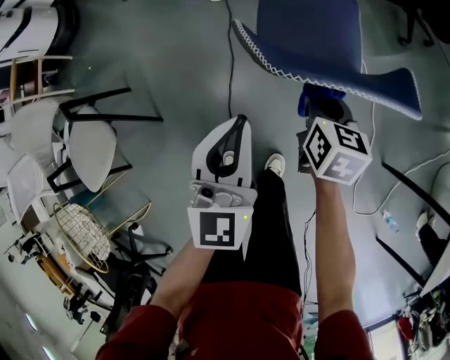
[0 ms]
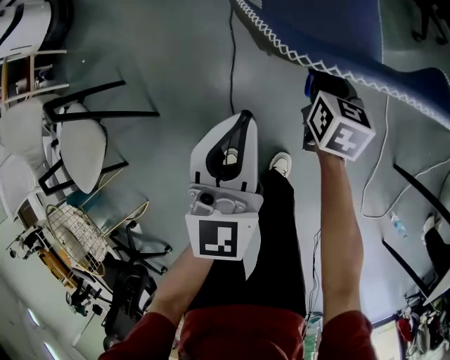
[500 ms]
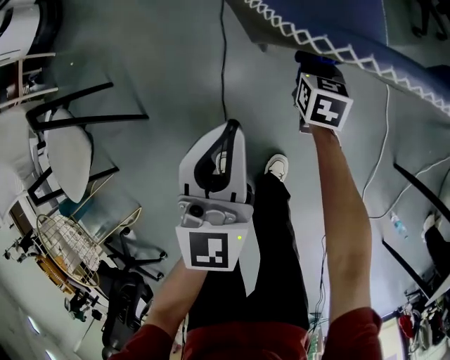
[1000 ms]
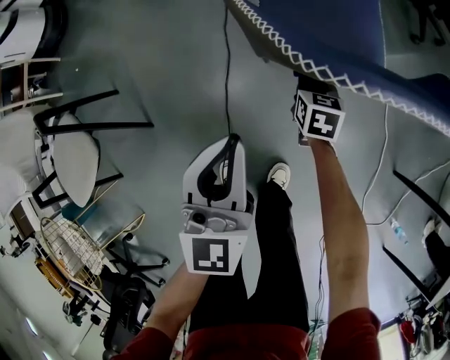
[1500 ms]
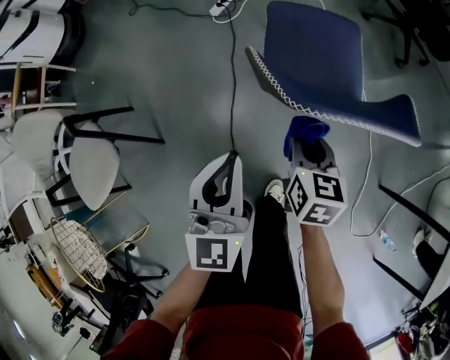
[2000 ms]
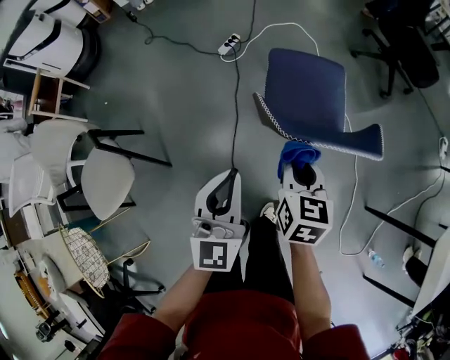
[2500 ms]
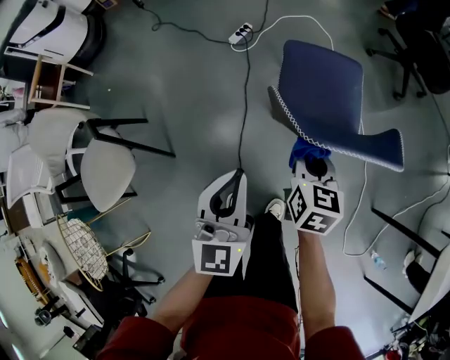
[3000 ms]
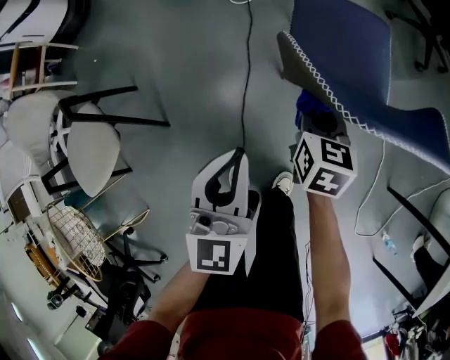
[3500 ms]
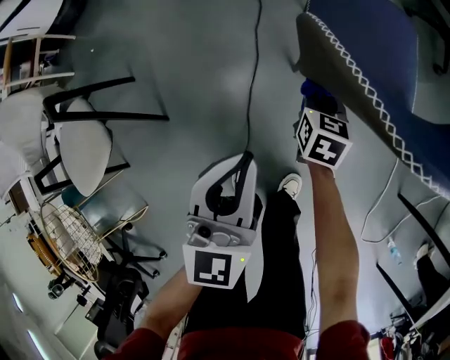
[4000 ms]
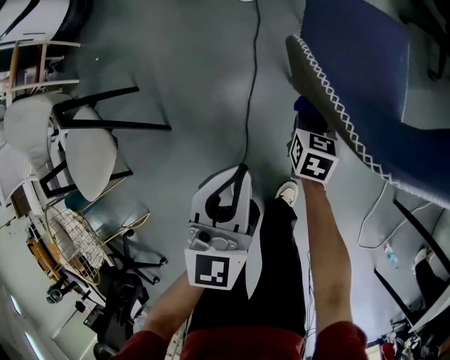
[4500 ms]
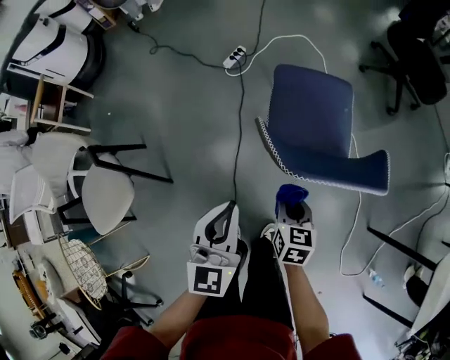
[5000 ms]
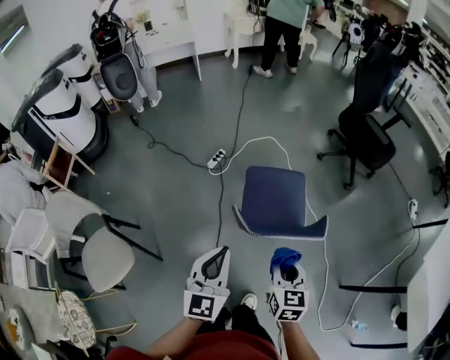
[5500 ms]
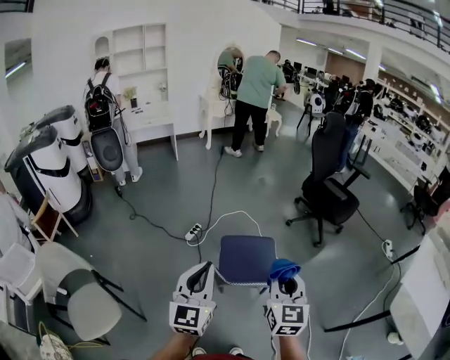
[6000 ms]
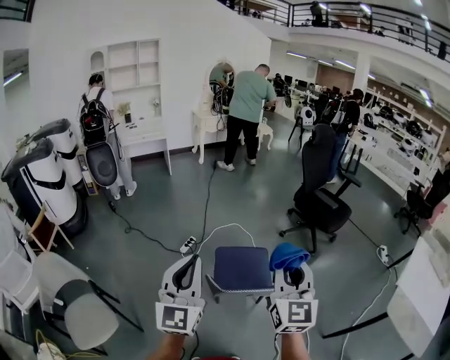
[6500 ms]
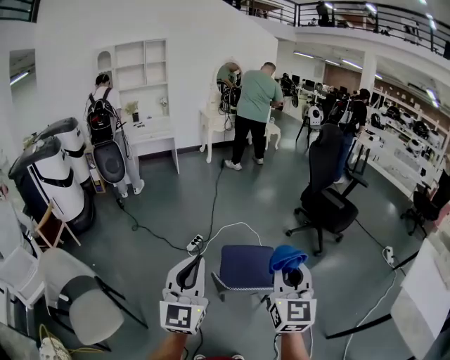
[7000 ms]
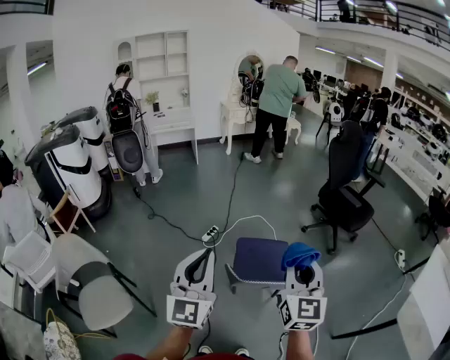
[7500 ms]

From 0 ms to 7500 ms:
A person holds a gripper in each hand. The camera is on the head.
From 0 ms to 2000 ms: The left gripper travels downward and back again, some 10 cm each way; the right gripper goes approximately 5 cm to the left, and goes downward and returns, about 25 cm each way.
From 2000 ms to 4000 ms: The right gripper goes about 20 cm downward and forward; the left gripper travels downward by about 10 cm.
From 4000 ms to 5500 ms: The left gripper travels upward by some 30 cm. The right gripper shifts some 40 cm upward.
From 5500 ms to 7500 ms: The grippers both shift upward by about 25 cm. The left gripper swivels roughly 20 degrees, while the right gripper tilts its fingers roughly 30 degrees upward.

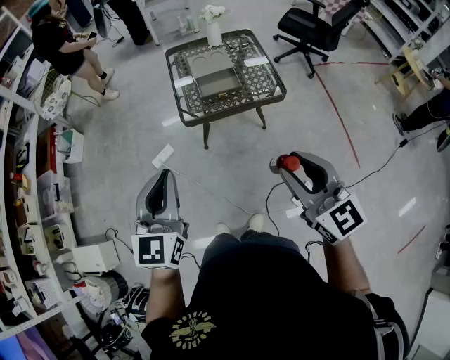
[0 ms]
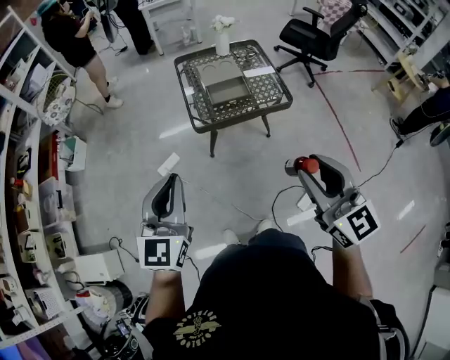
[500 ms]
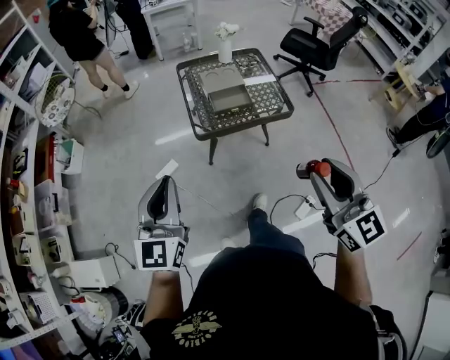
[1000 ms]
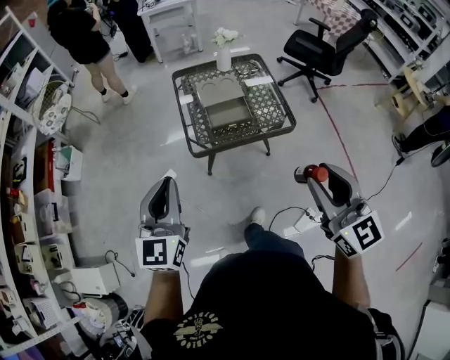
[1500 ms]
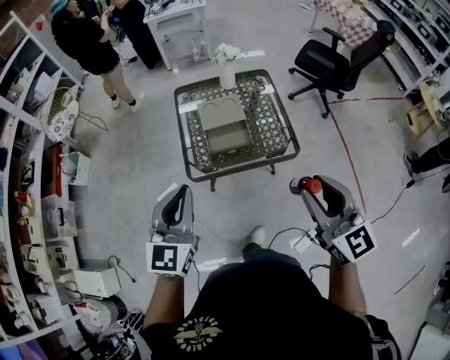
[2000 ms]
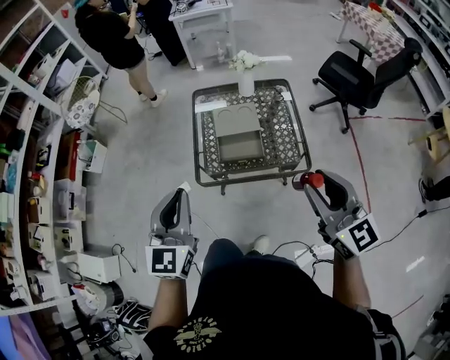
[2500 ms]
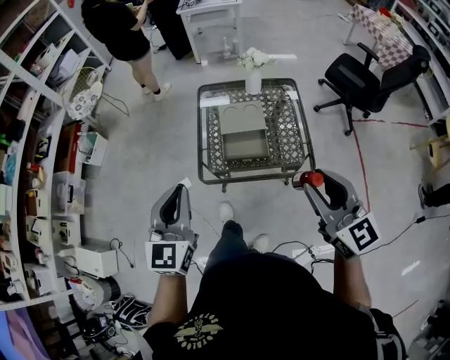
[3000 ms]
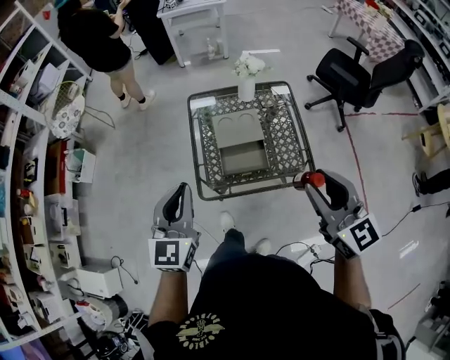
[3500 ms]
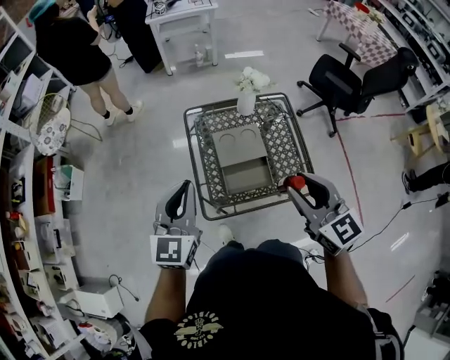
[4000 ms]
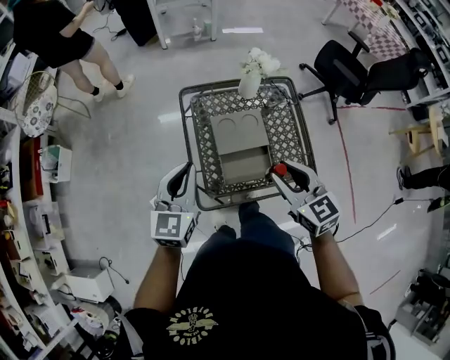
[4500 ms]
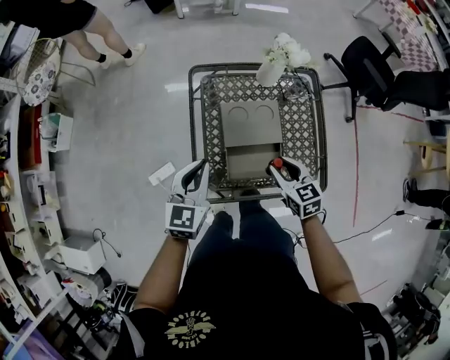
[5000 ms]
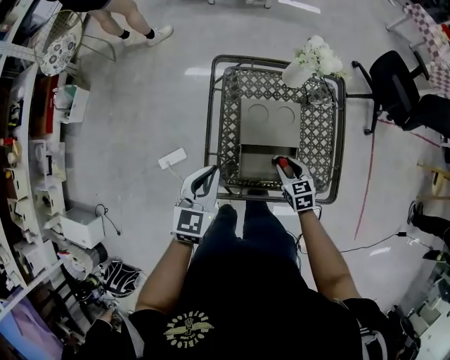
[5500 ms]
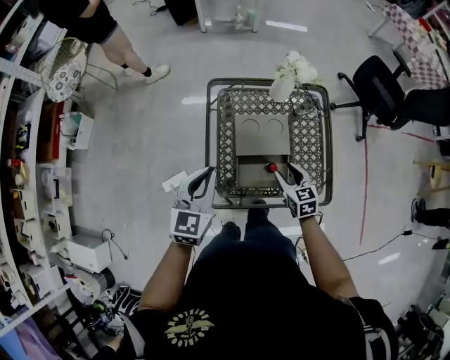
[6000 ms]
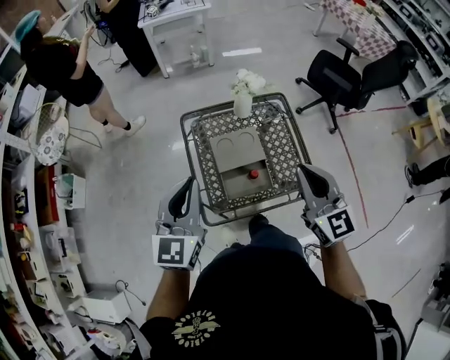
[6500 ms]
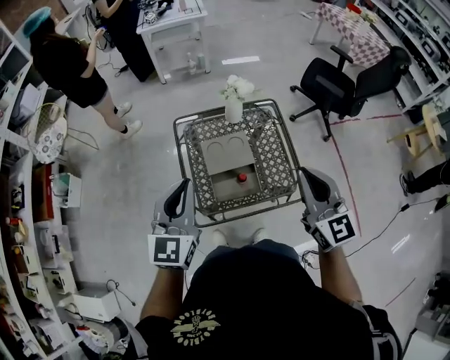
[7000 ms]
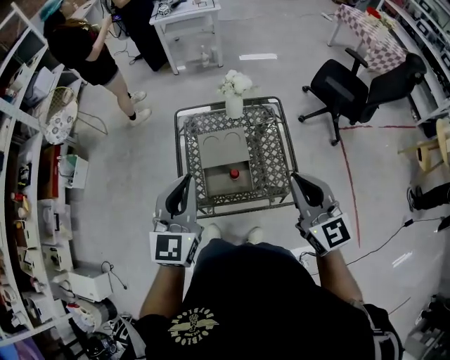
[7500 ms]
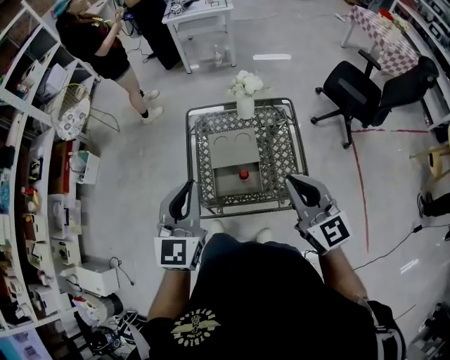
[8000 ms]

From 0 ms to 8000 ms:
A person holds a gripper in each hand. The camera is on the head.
From 0 ms to 2000 ms: The left gripper goes roughly 20 cm forward. Meanwhile the right gripper shifts about 25 cm forward and to the right.
From 2000 ms to 4000 ms: Both grippers move forward, about 25 cm.
From 4000 ms to 6000 ms: The right gripper moves downward, approximately 35 cm, and swivels about 30 degrees. Meanwhile the left gripper shifts about 15 cm downward and forward.
From 6000 ms to 8000 ms: The right gripper heads upward, covering some 35 cm, tilts its fingers about 30 degrees upward, and closes its fingers. The left gripper moves upward, to the right and backward, about 25 cm.

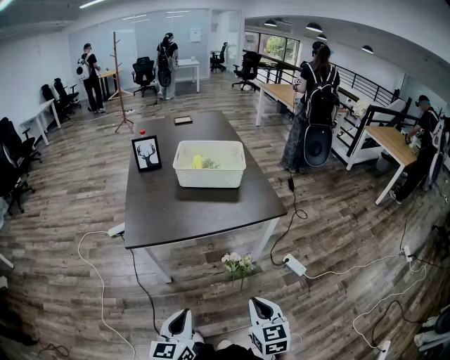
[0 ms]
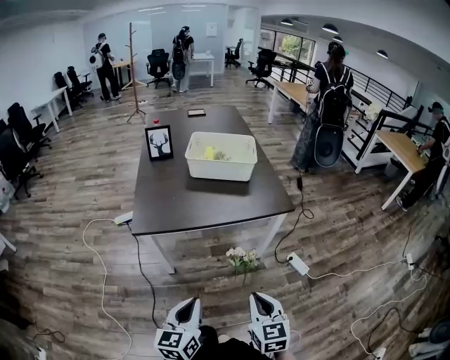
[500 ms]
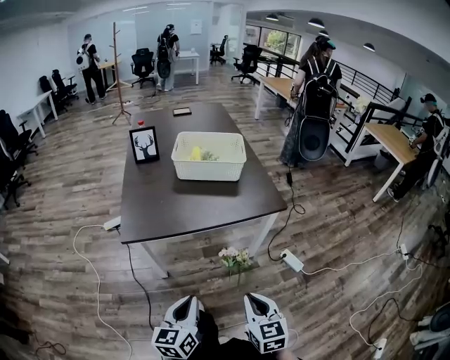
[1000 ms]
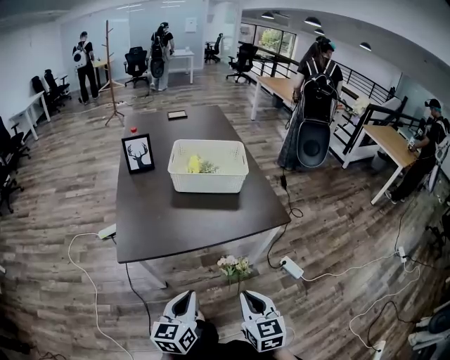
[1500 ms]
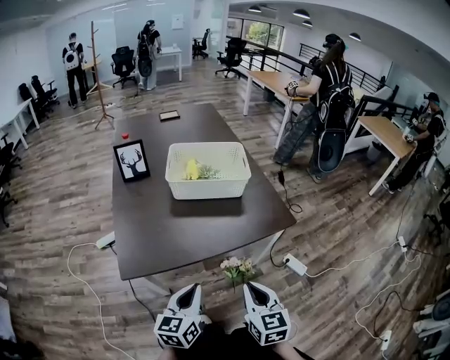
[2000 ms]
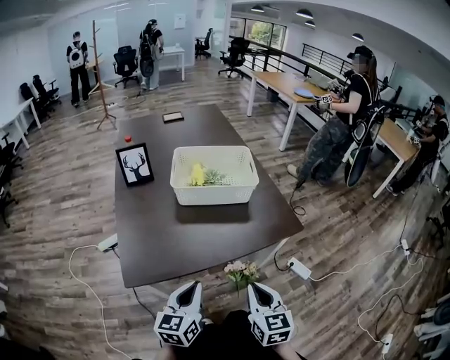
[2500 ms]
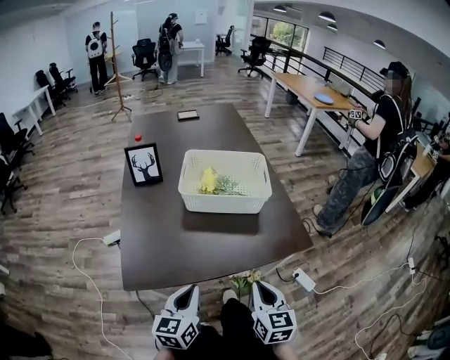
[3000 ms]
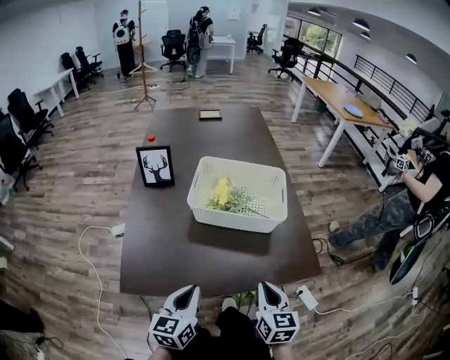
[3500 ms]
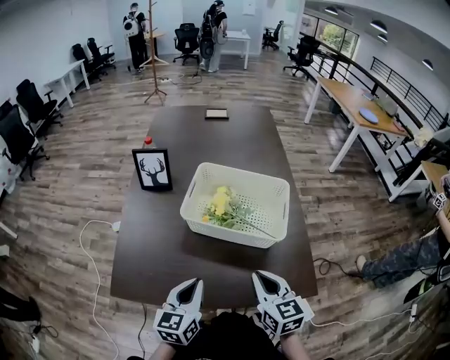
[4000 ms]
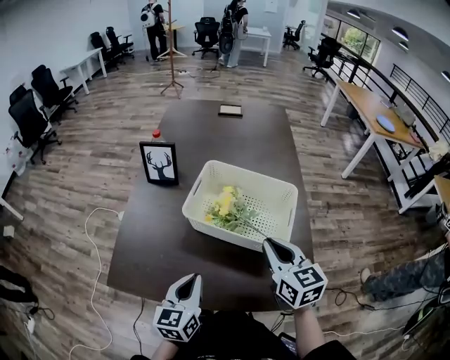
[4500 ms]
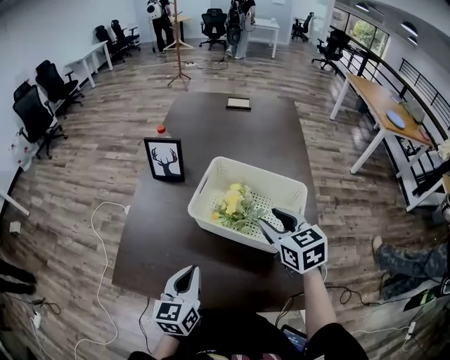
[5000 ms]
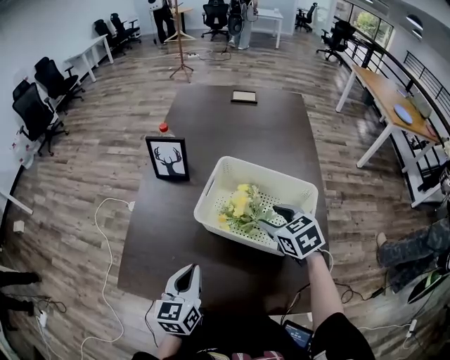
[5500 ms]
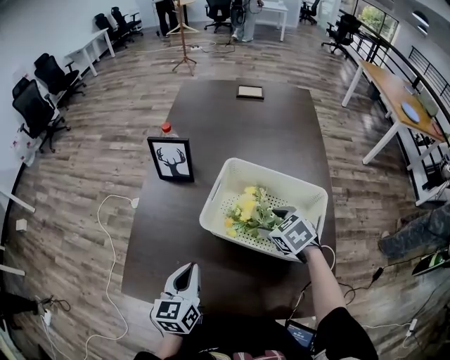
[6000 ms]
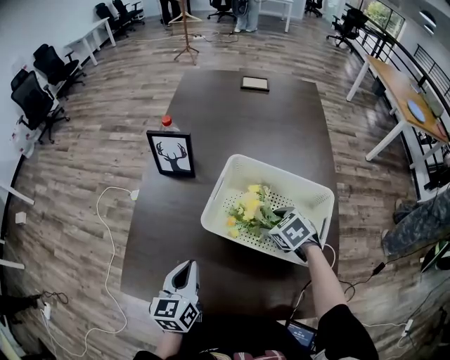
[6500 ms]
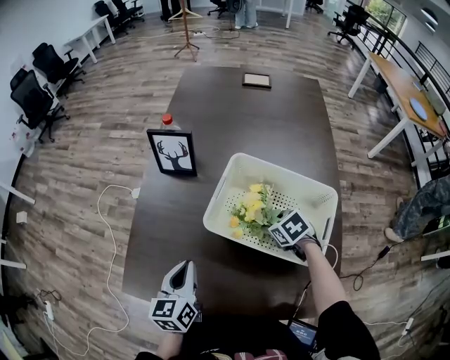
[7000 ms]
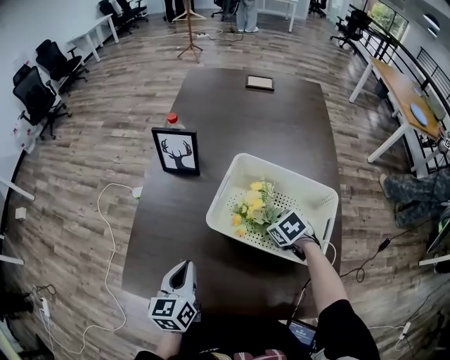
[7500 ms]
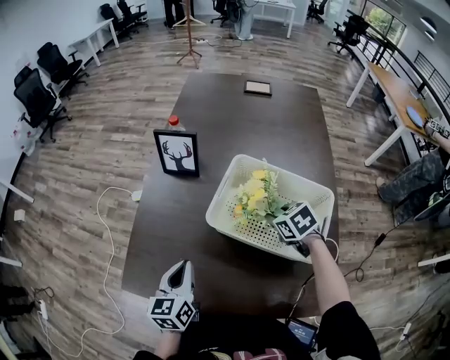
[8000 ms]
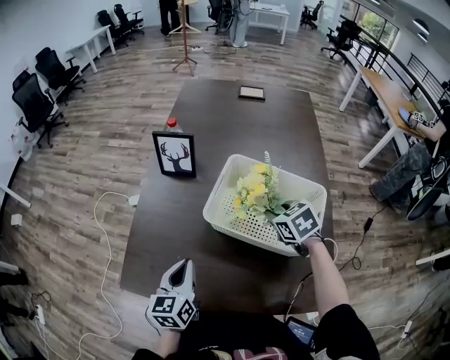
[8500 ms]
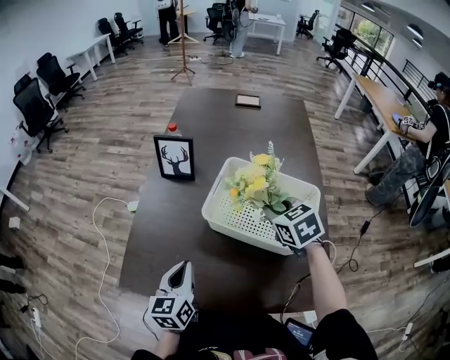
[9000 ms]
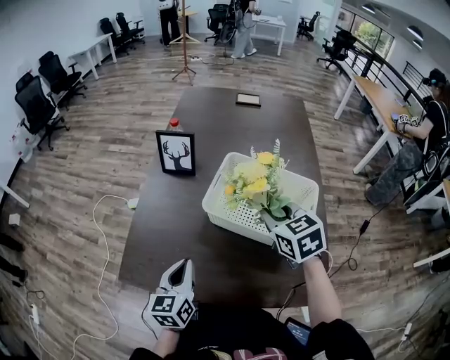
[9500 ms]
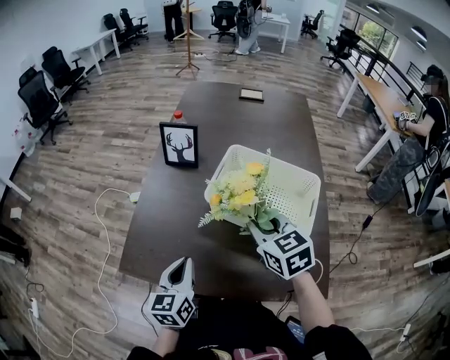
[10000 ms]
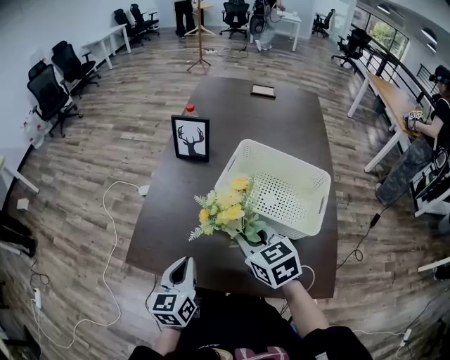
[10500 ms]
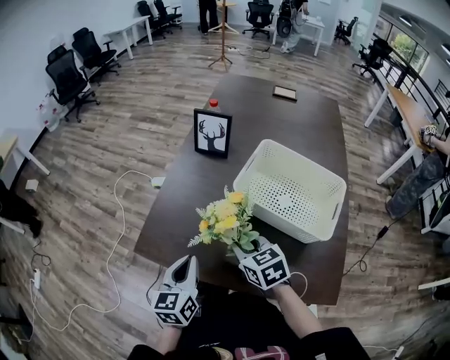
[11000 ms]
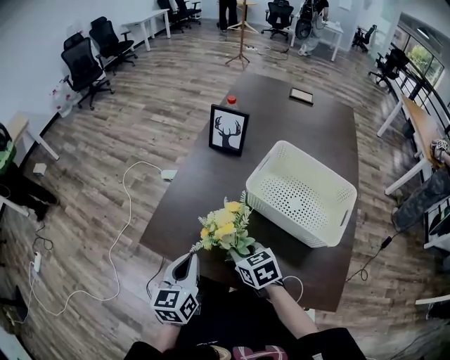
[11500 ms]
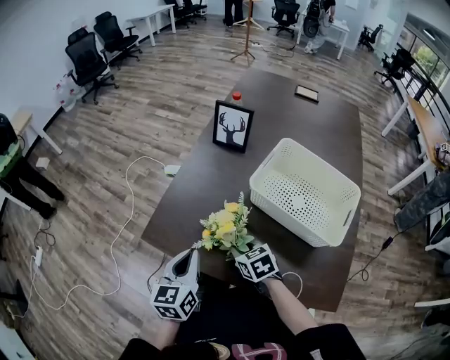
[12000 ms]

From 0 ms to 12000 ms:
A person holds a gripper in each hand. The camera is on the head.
From 0 ms to 2000 ms: Both grippers travel together forward, about 20 cm.
From 2000 ms to 4000 ms: Both grippers move forward, approximately 25 cm. The right gripper swivels roughly 20 degrees.
From 4000 ms to 6000 ms: The right gripper heads forward, covering some 25 cm, points its fingers roughly 30 degrees further downward, and opens its fingers; the left gripper goes approximately 10 cm forward.
From 6000 ms to 8000 ms: The right gripper closes up.
From 8000 ms to 10000 ms: The left gripper goes about 10 cm backward, while the right gripper goes some 20 cm upward, backward and to the left, and turns by approximately 30 degrees.
From 10000 ms to 12000 ms: The right gripper shifts approximately 25 cm downward and to the left, and rotates approximately 30 degrees, while the left gripper moves to the left, some 5 cm.
